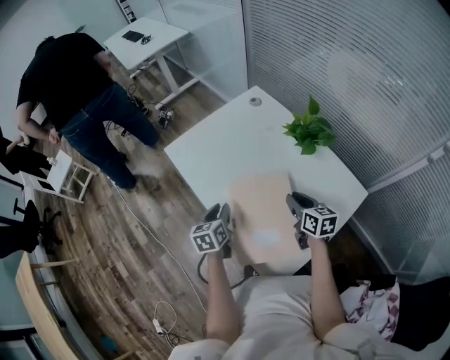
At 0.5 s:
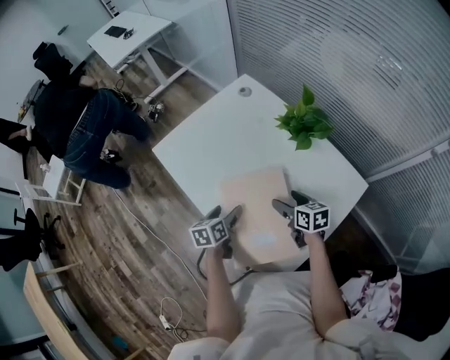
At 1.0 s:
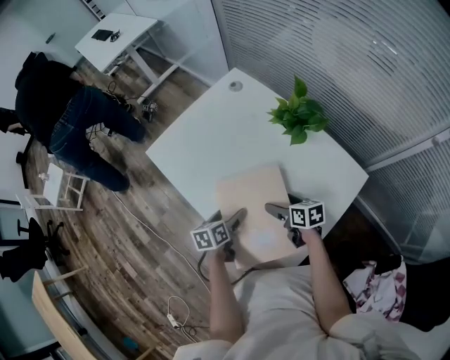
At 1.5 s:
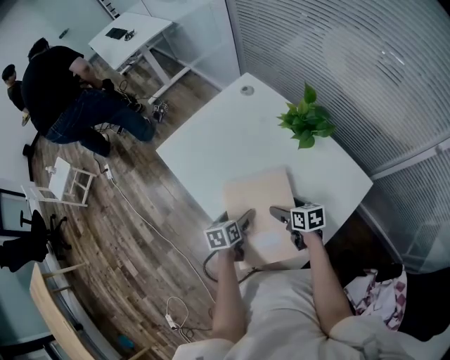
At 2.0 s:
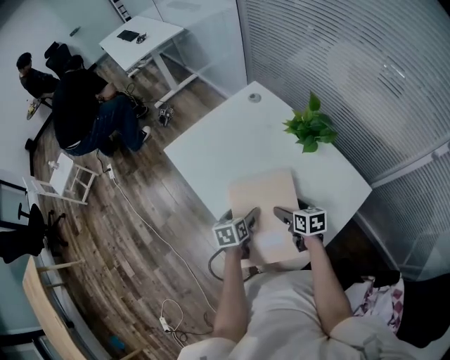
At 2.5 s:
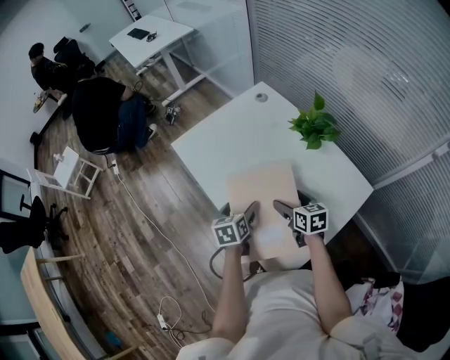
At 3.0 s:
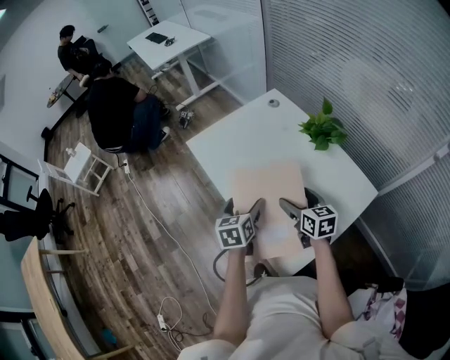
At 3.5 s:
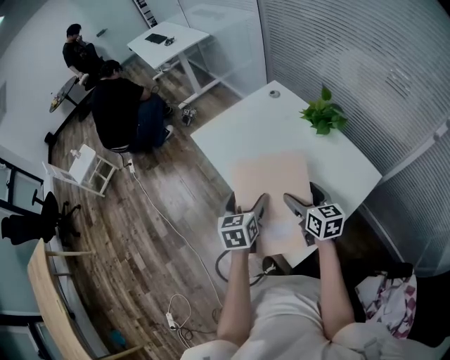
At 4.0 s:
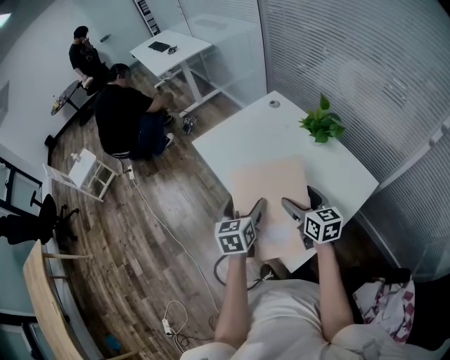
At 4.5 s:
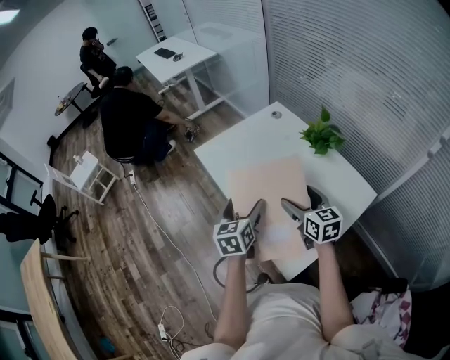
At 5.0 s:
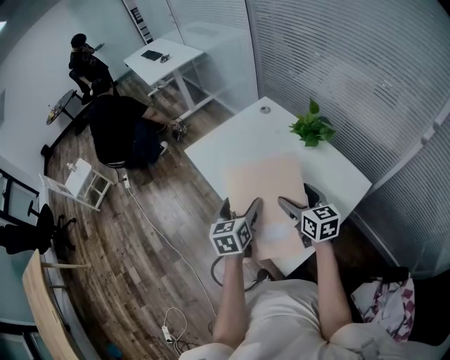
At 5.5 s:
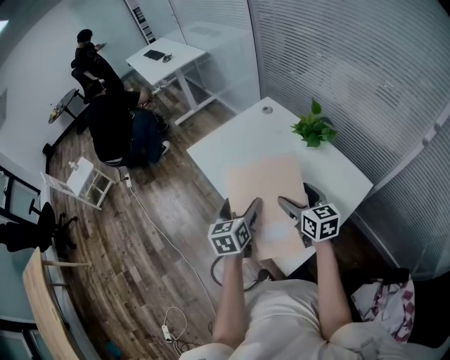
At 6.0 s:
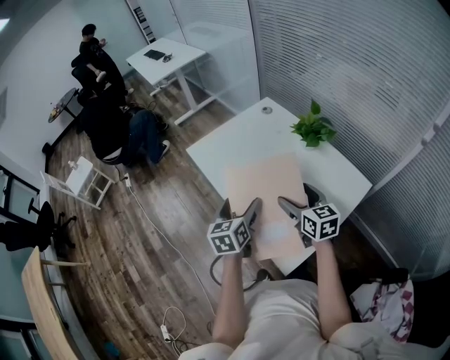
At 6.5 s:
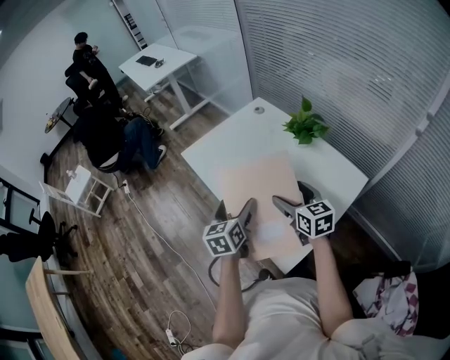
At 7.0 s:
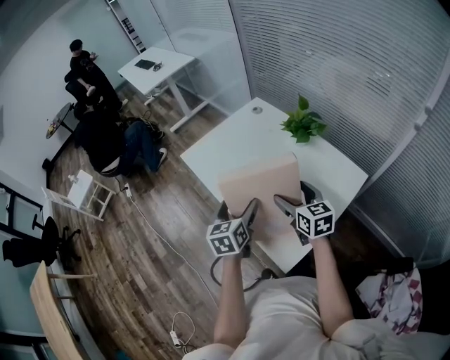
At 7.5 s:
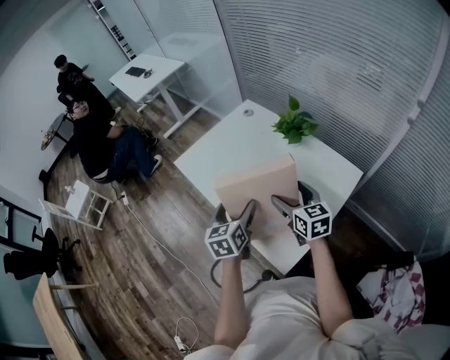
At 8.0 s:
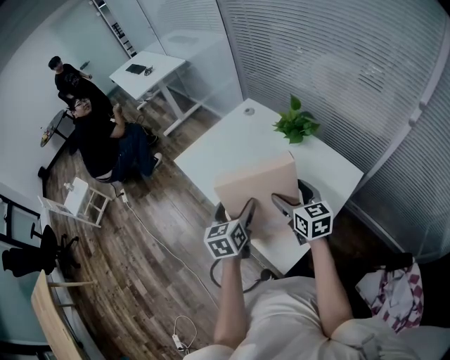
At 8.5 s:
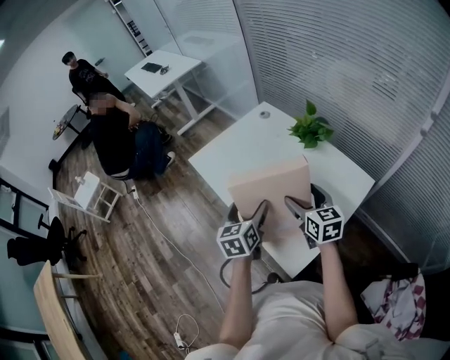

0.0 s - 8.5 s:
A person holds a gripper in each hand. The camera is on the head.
0.0 s - 2.0 s: The right gripper heads downward, covering roughly 10 cm, and opens its fingers, while the left gripper is displaced to the right and downward by some 10 cm, and opens its fingers.
2.0 s - 4.0 s: Both grippers travel together upward and backward, roughly 15 cm. The right gripper swivels some 30 degrees. The left gripper turns by some 30 degrees.
4.0 s - 8.5 s: The grippers make only small movements.

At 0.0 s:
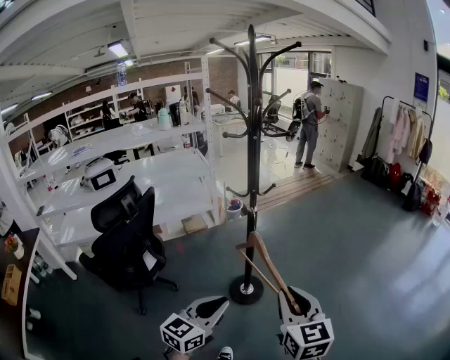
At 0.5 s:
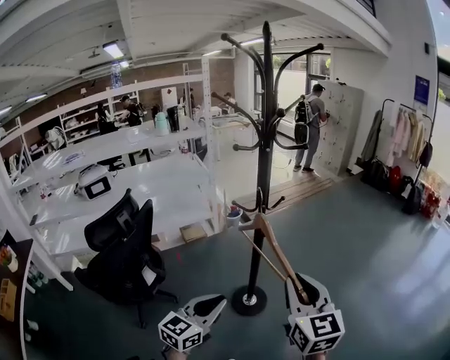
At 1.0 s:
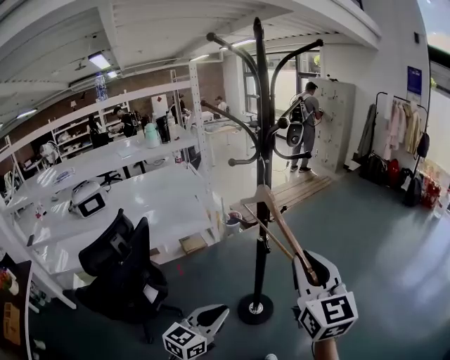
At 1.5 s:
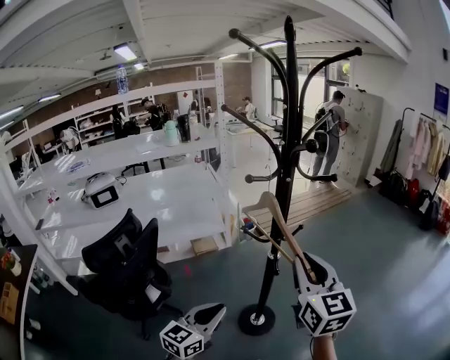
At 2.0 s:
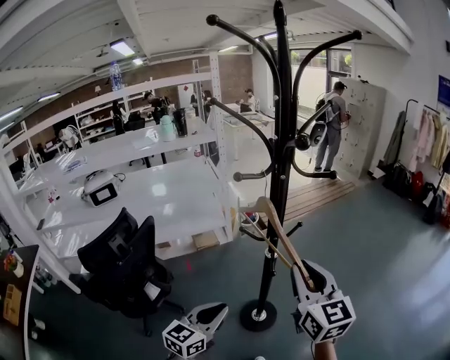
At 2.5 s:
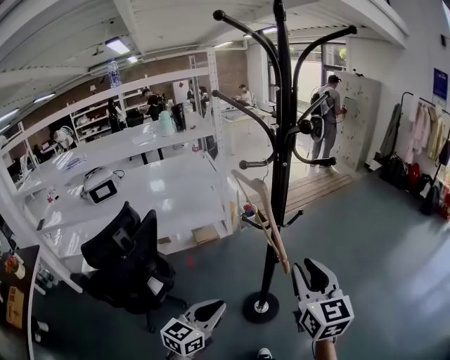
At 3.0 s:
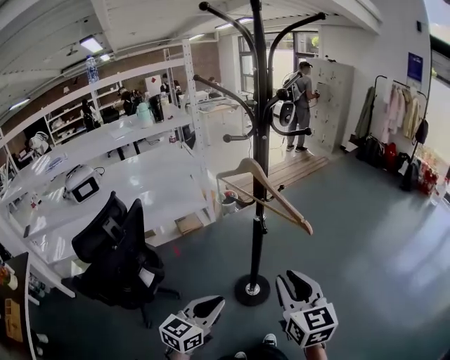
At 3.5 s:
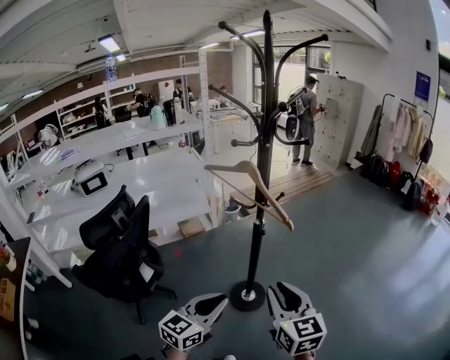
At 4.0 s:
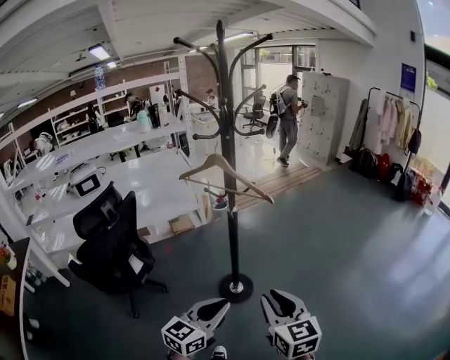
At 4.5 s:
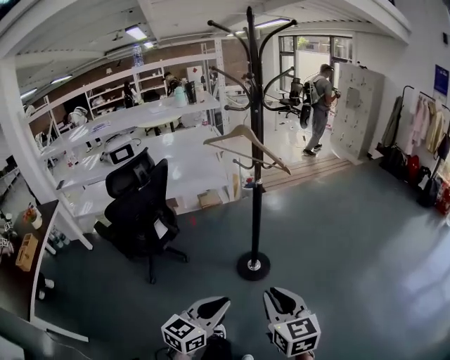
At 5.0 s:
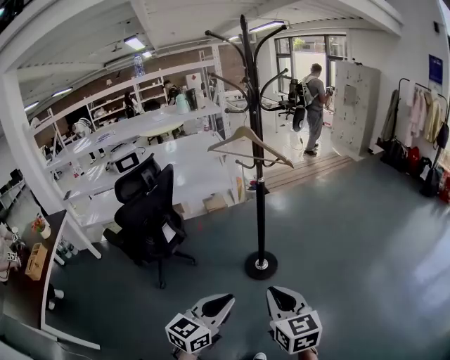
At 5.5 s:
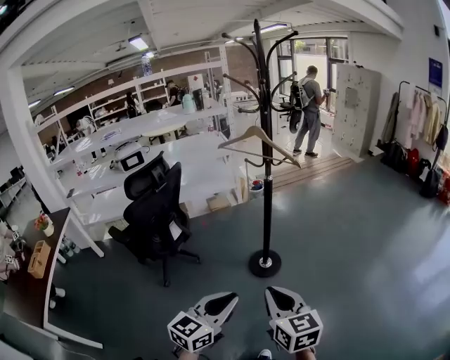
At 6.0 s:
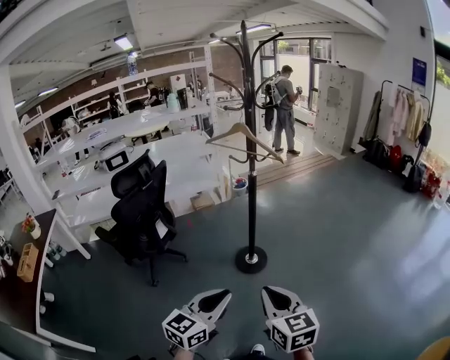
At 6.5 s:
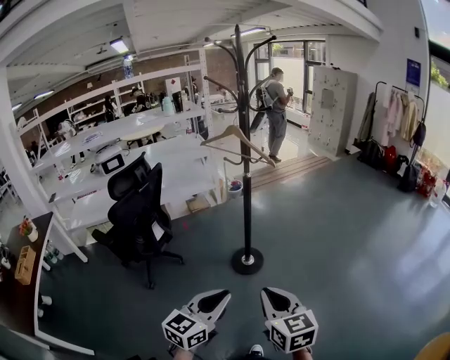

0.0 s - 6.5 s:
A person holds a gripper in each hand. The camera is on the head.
0.0 s - 2.0 s: The right gripper heads forward, covering about 30 cm, while the left gripper travels forward and to the left by roughly 25 cm.
2.0 s - 4.5 s: The left gripper shifts about 40 cm backward and to the right. The right gripper moves backward, about 40 cm.
4.5 s - 6.5 s: Both grippers move backward, roughly 10 cm.

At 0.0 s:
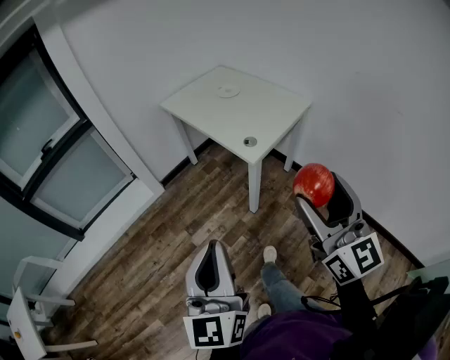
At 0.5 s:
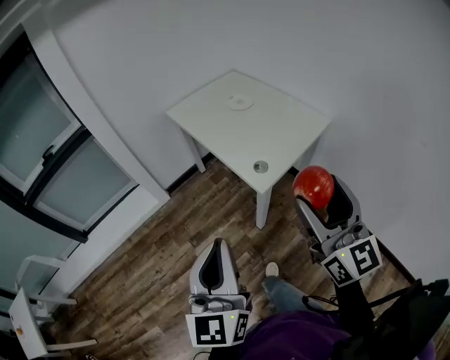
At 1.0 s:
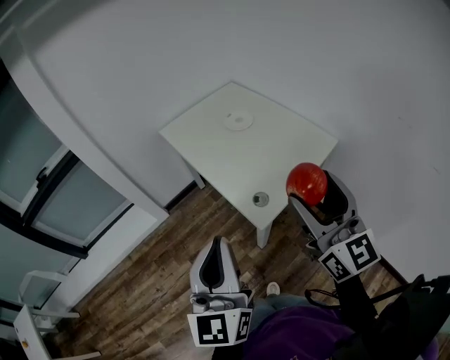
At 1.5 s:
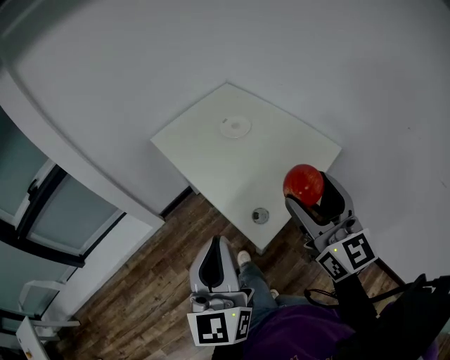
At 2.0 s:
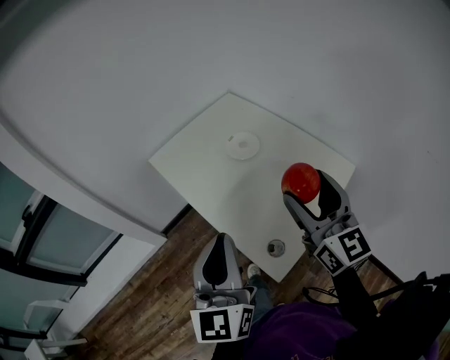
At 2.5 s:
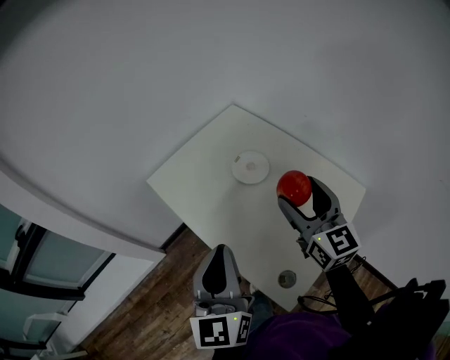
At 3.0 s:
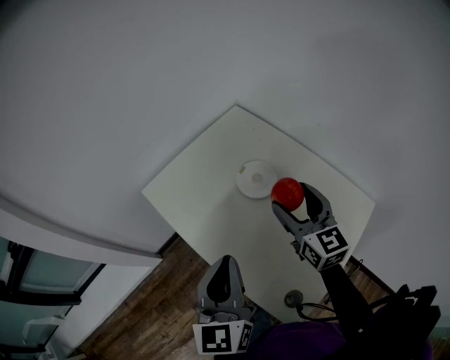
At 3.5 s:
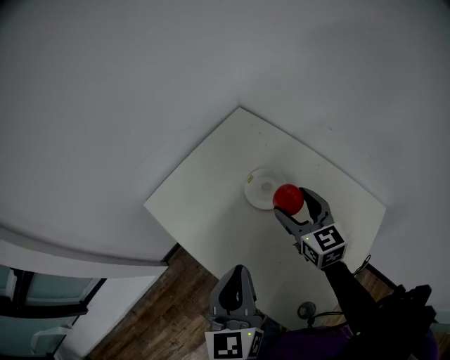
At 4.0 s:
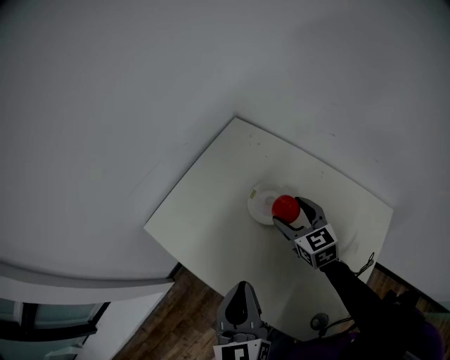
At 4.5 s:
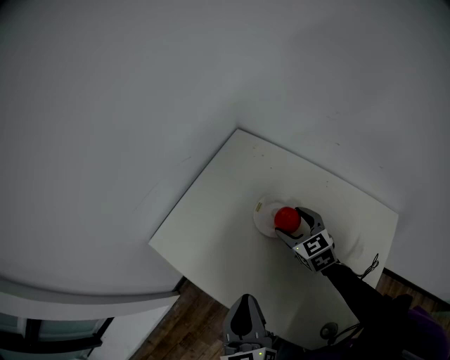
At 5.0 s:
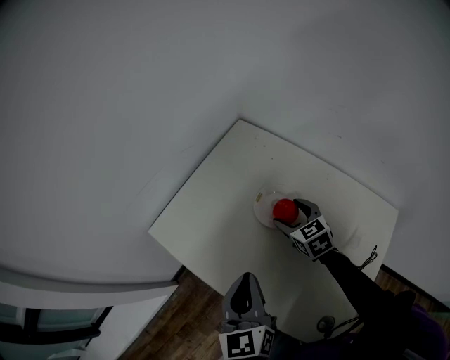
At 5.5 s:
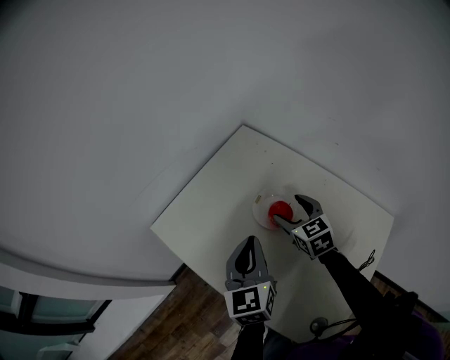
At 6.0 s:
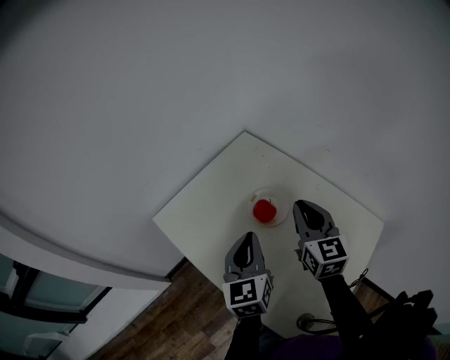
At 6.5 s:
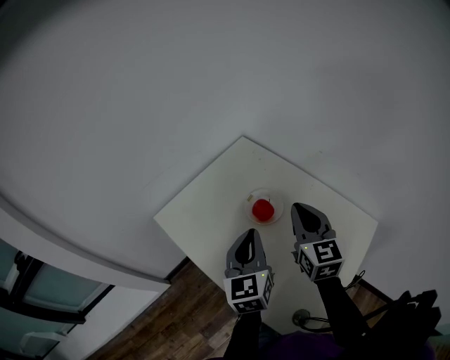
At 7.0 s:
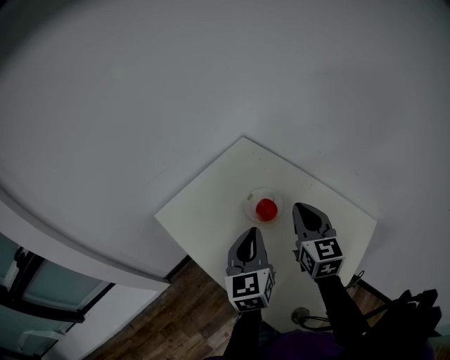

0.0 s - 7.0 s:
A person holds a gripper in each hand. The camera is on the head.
0.0 s - 2.0 s: The pair of grippers is taken forward, approximately 50 cm.
2.0 s - 3.5 s: The grippers both shift forward and downward by roughly 30 cm. The right gripper swivels some 20 degrees.
3.5 s - 5.0 s: The right gripper moves downward and forward, roughly 15 cm. The left gripper travels downward and forward by roughly 10 cm.
5.0 s - 7.0 s: The right gripper heads upward and backward, covering about 20 cm, rotates roughly 30 degrees, and closes up; the left gripper is displaced to the right by roughly 5 cm.

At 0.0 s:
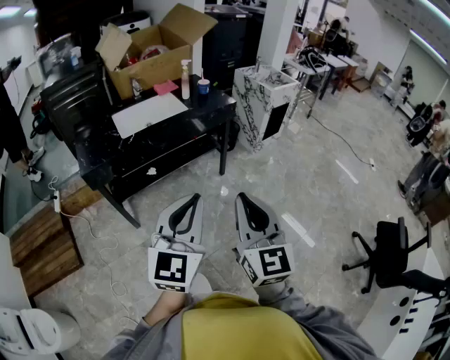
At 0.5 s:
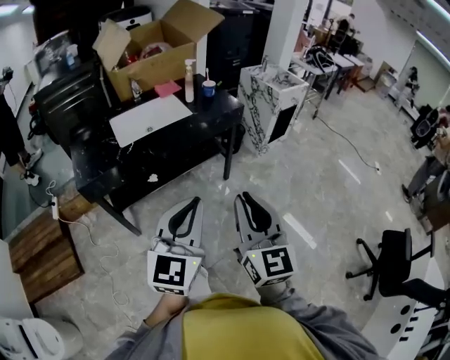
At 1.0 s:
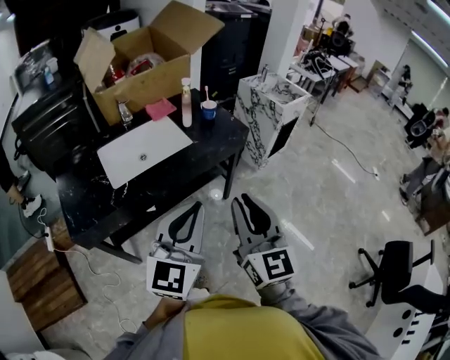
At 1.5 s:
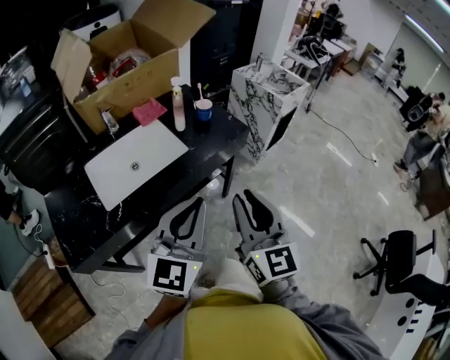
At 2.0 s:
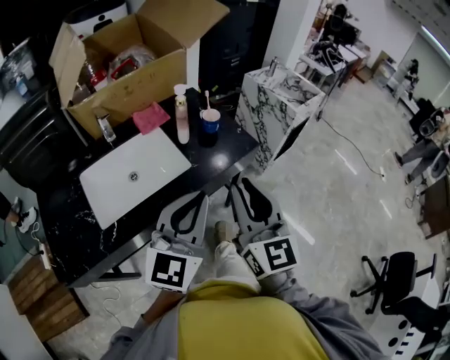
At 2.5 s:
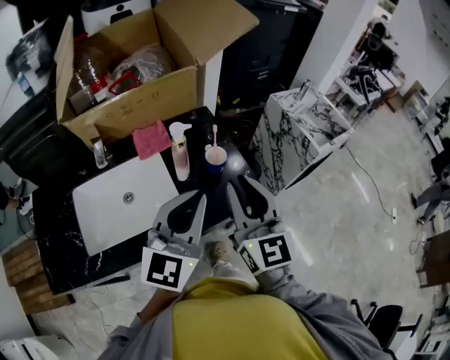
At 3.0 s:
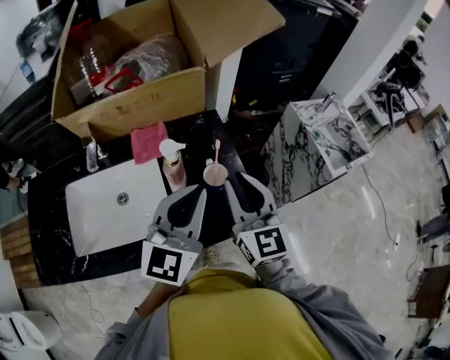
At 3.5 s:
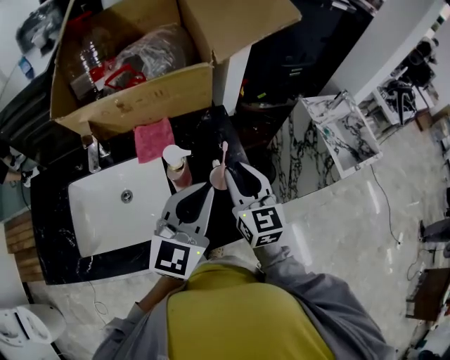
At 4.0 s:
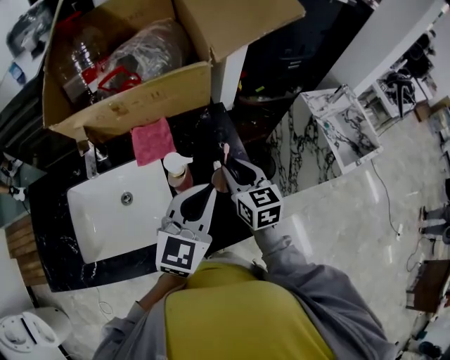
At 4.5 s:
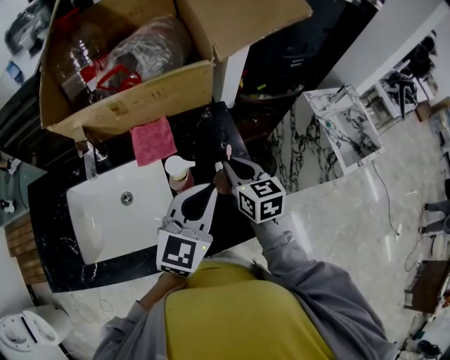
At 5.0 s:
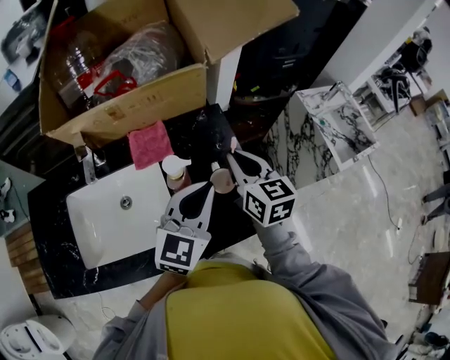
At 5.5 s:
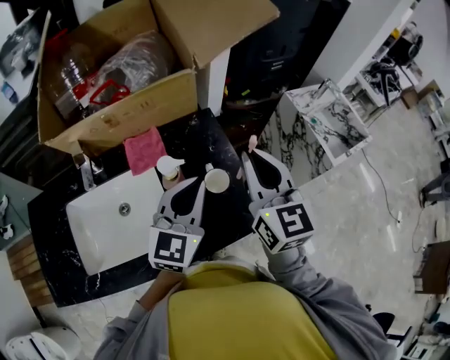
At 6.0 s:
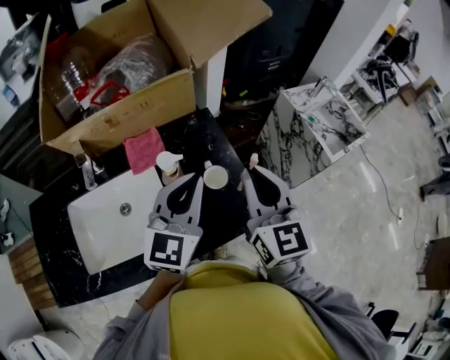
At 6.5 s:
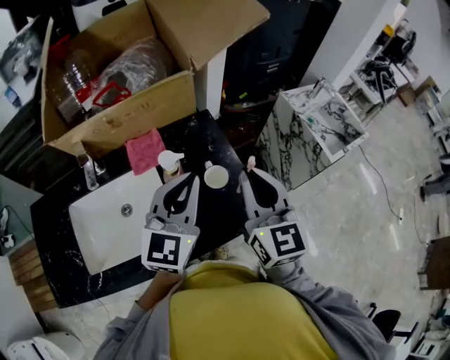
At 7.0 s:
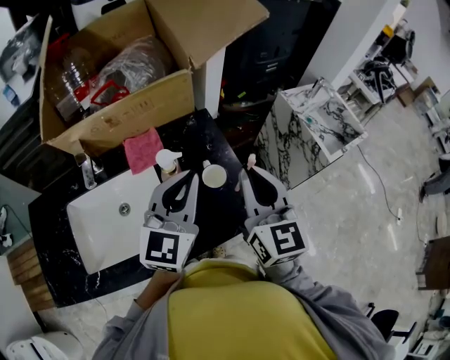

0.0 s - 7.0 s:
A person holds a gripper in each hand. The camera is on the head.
0.0 s - 2.0 s: Both grippers are carried forward, about 50 cm.
2.0 s - 3.5 s: The grippers both shift forward by about 35 cm. The right gripper turns by some 30 degrees.
5.0 s - 7.0 s: The right gripper moves backward and upward, roughly 15 cm, and changes its angle by roughly 20 degrees. The left gripper is displaced upward by roughly 5 cm.
